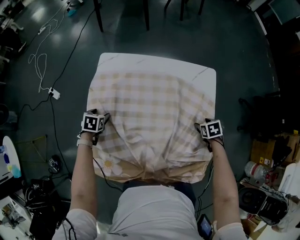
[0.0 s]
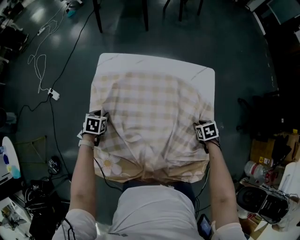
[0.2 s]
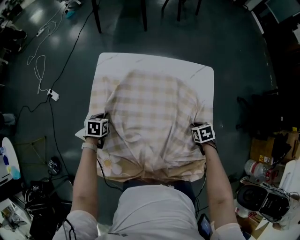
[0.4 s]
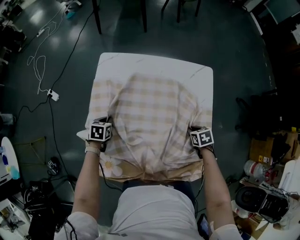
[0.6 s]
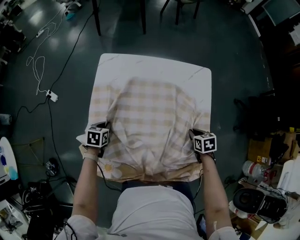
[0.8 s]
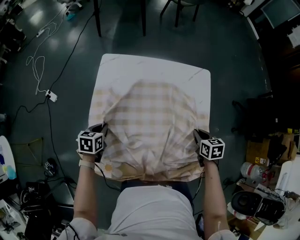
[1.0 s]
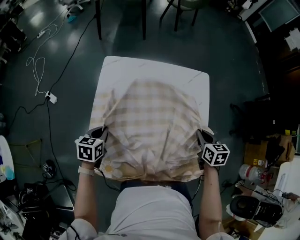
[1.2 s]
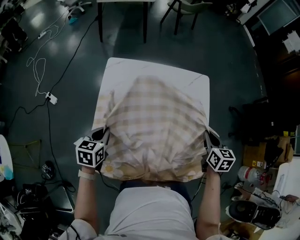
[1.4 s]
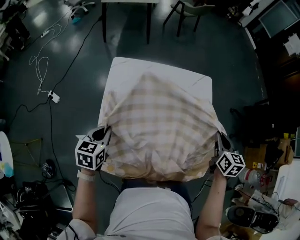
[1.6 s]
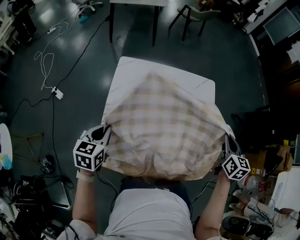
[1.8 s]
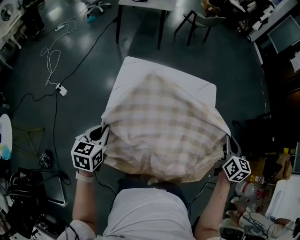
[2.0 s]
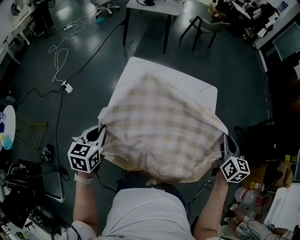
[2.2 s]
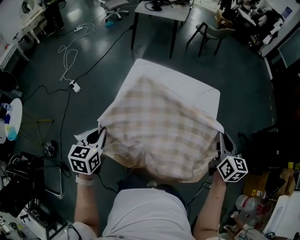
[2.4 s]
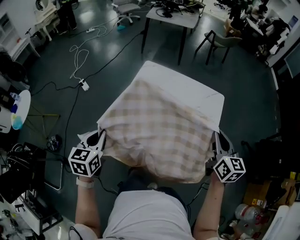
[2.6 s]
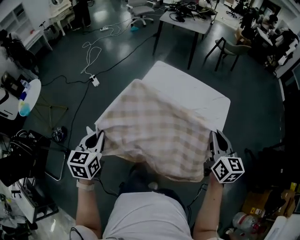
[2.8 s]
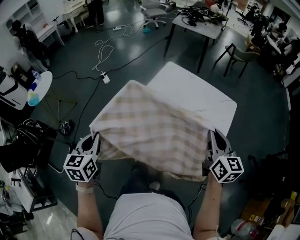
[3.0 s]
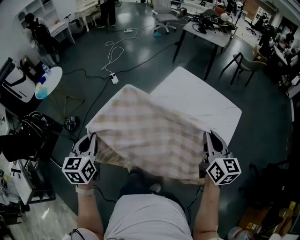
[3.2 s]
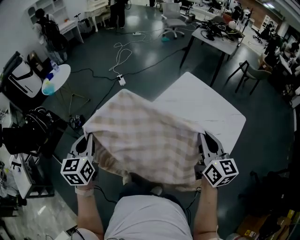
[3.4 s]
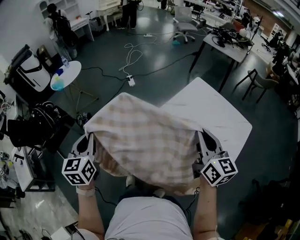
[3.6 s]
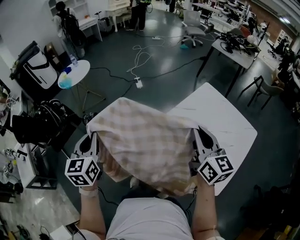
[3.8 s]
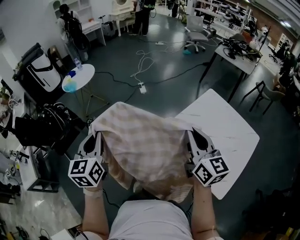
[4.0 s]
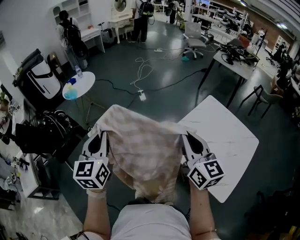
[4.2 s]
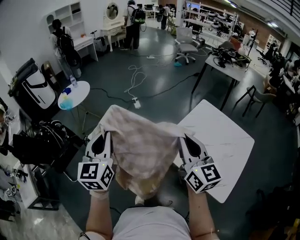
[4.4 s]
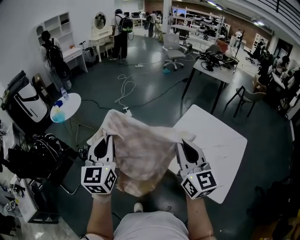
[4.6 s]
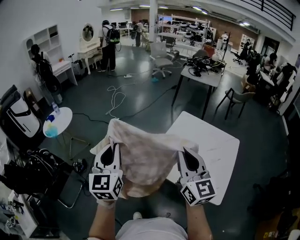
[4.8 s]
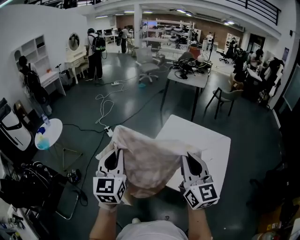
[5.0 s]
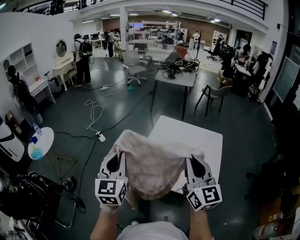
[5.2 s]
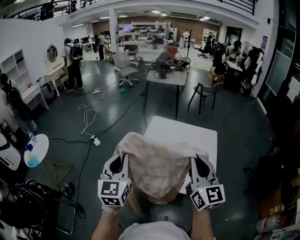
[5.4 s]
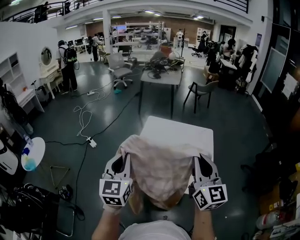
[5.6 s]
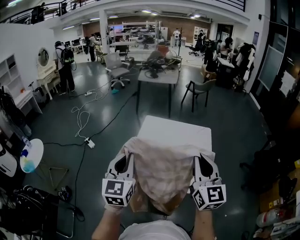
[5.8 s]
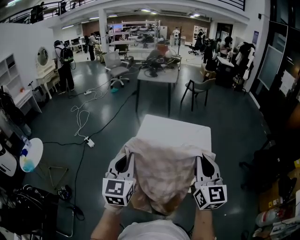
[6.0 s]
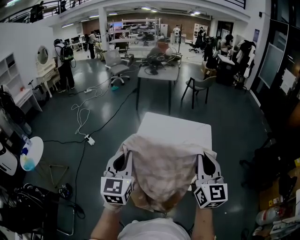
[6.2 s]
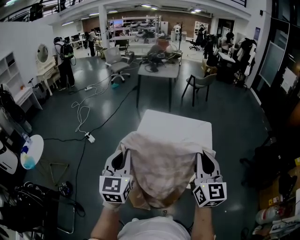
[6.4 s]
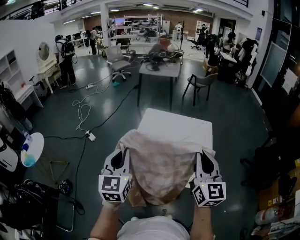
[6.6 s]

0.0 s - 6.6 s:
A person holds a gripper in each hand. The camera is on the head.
0.0 s - 1.6 s: The grippers both shift upward by some 25 cm. The right gripper points its fingers roughly 40 degrees further upward, and closes its fingers. Meanwhile the left gripper rotates about 30 degrees, and closes.
1.6 s - 3.2 s: The left gripper changes place by some 40 cm, and rotates approximately 50 degrees, while the right gripper shifts by roughly 25 cm, and rotates roughly 50 degrees.
3.2 s - 5.0 s: The left gripper goes about 15 cm upward, and turns by roughly 30 degrees, while the right gripper ends up some 25 cm from where it was, and swivels approximately 20 degrees.
5.0 s - 6.6 s: The two grippers go some 15 cm to the right. The right gripper changes its angle by about 20 degrees.

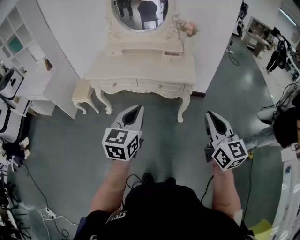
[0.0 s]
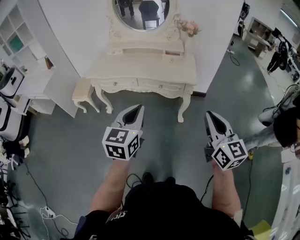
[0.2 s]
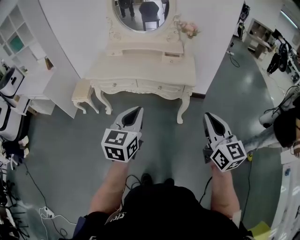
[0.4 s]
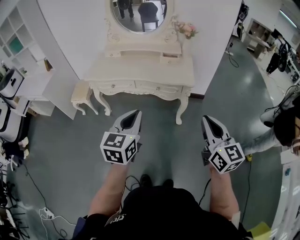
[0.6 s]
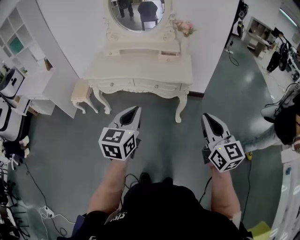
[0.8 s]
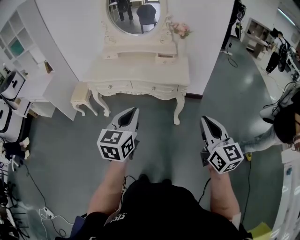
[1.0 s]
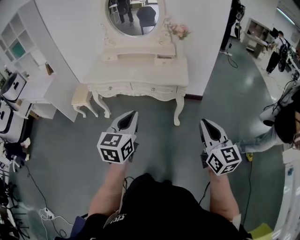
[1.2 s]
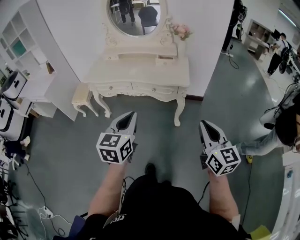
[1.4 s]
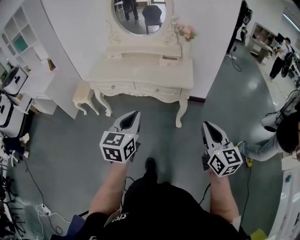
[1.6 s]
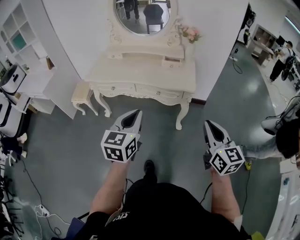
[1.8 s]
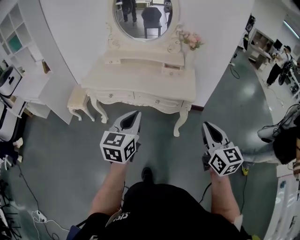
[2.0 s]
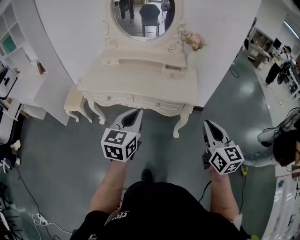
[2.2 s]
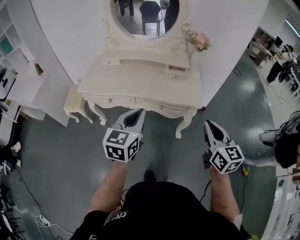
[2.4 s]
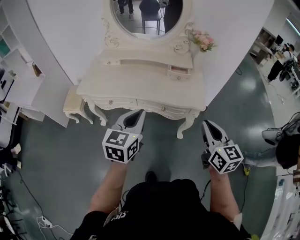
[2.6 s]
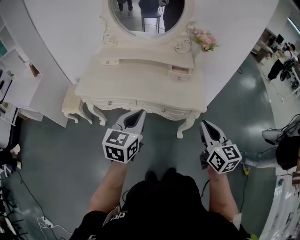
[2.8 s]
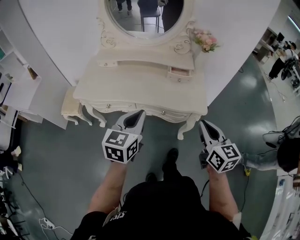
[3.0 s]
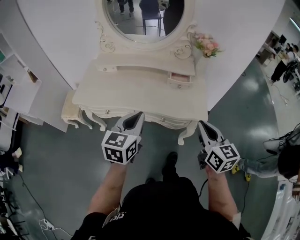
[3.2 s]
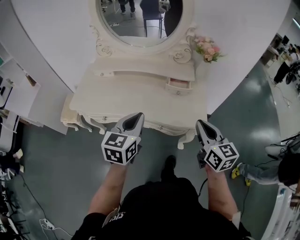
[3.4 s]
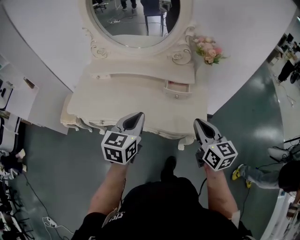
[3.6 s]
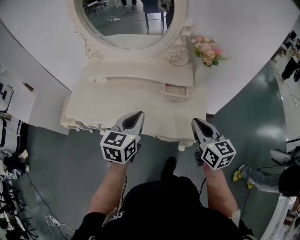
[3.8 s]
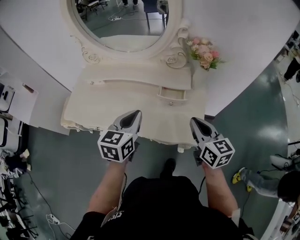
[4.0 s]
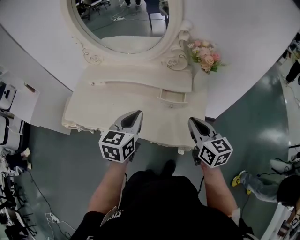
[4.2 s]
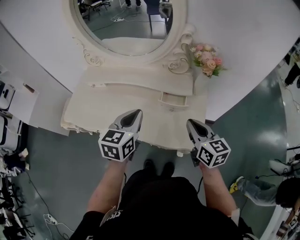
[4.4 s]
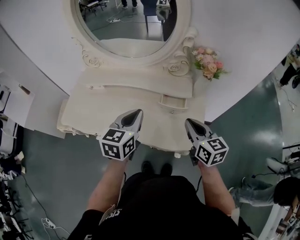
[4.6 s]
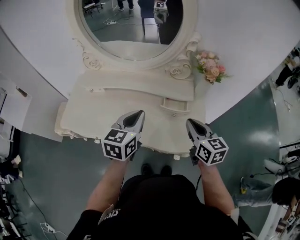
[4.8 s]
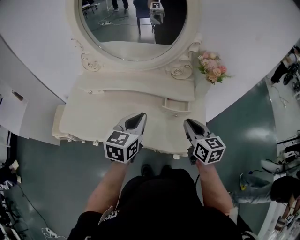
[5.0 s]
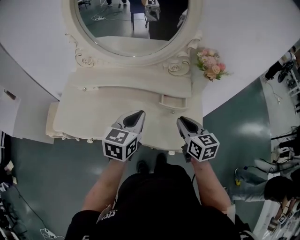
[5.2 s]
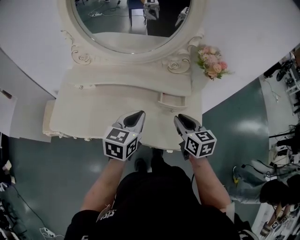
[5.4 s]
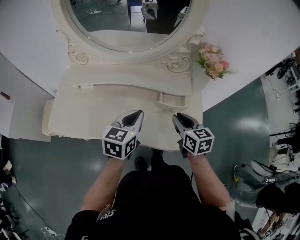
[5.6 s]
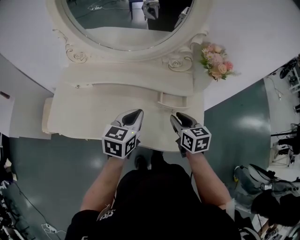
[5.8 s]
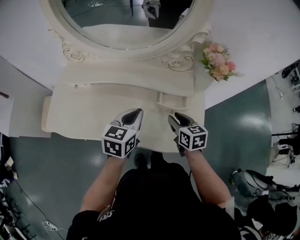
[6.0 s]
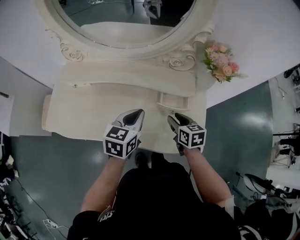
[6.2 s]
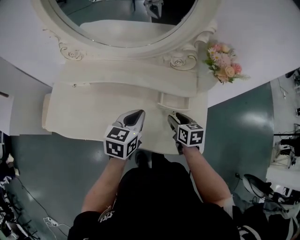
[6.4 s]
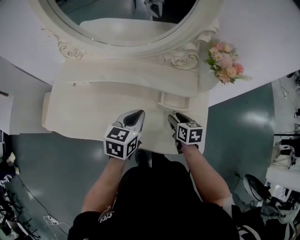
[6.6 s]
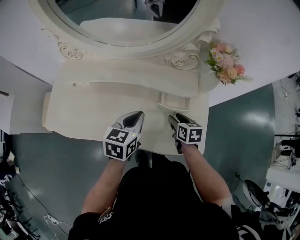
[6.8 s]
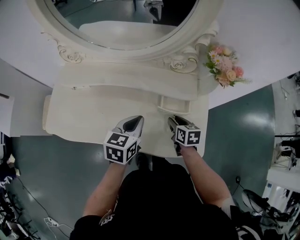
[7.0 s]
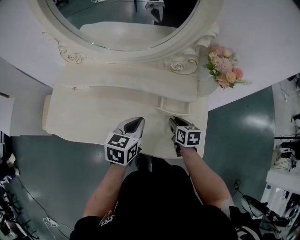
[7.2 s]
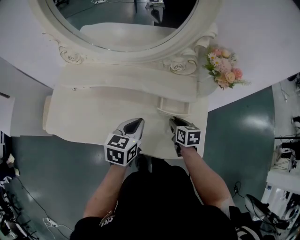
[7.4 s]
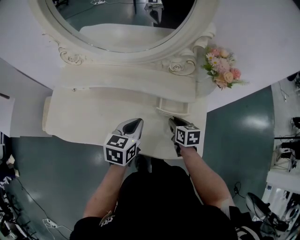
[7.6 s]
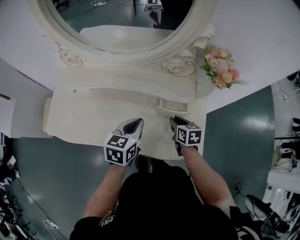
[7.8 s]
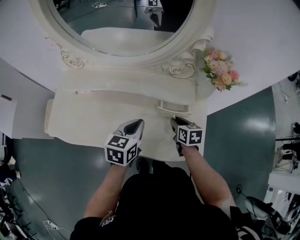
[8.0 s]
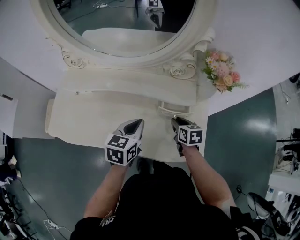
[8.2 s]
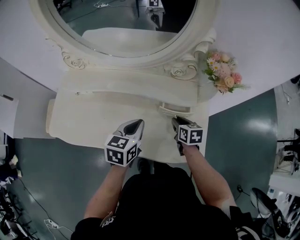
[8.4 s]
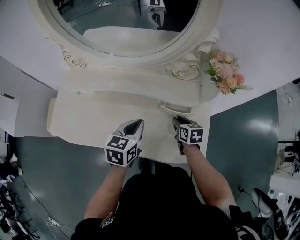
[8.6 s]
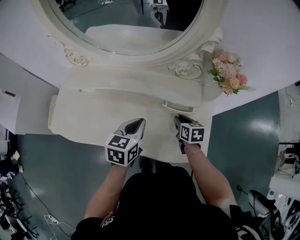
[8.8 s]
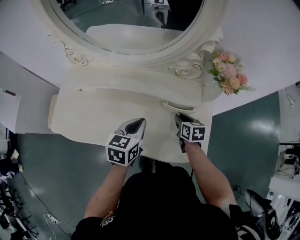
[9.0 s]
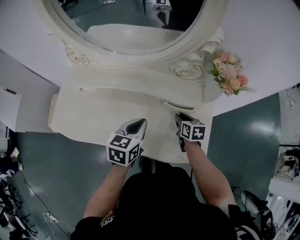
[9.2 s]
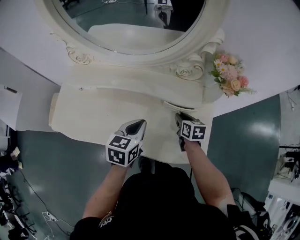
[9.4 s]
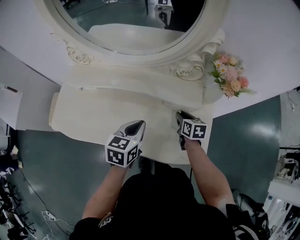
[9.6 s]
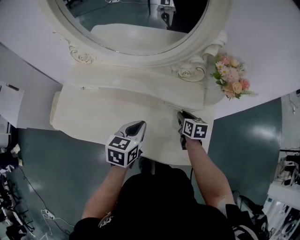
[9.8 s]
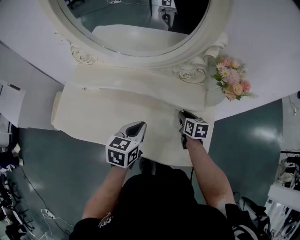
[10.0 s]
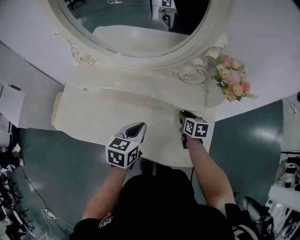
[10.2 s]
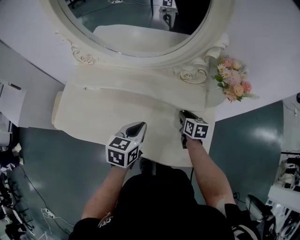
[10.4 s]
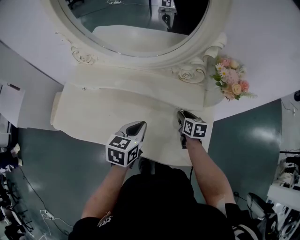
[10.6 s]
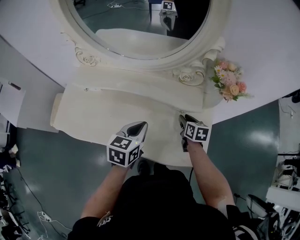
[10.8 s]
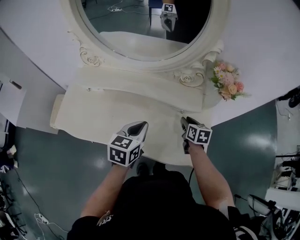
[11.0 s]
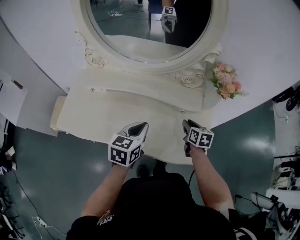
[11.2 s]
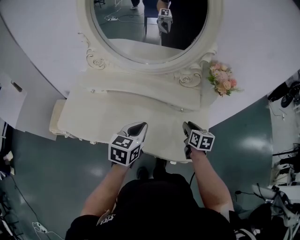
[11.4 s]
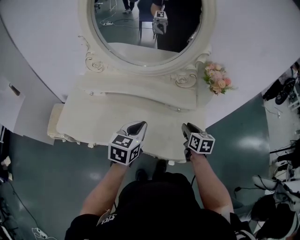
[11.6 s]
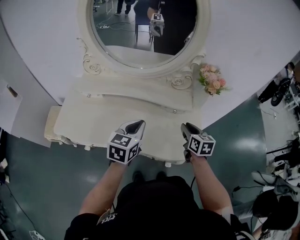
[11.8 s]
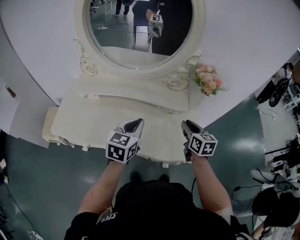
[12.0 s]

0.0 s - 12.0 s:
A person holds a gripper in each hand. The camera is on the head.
0.0 s - 1.6 s: The right gripper moves to the right, roughly 5 cm.
1.6 s - 3.0 s: Both grippers move forward, some 30 cm.
3.0 s - 4.4 s: The two grippers go approximately 25 cm forward.
4.4 s - 6.0 s: The right gripper heads downward, forward and to the left, covering roughly 15 cm, rotates approximately 20 degrees, and opens its fingers. Meanwhile the left gripper shifts approximately 10 cm downward and forward.
6.0 s - 7.6 s: The right gripper travels downward by roughly 10 cm.
7.6 s - 9.0 s: The grippers move only a little.
9.0 s - 10.4 s: The grippers stay close to where they were, moving slightly.
10.4 s - 12.0 s: The left gripper travels upward by approximately 10 cm. The right gripper is displaced upward and backward by about 20 cm.

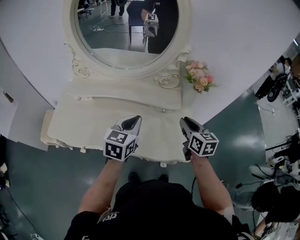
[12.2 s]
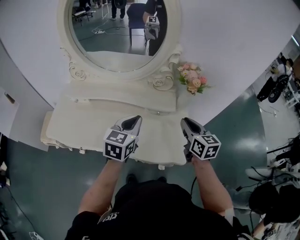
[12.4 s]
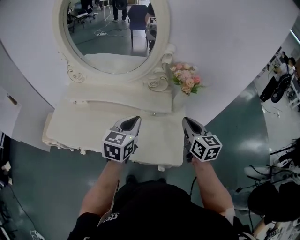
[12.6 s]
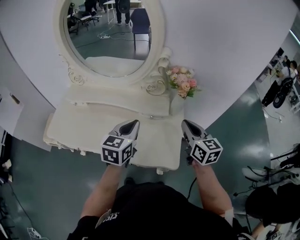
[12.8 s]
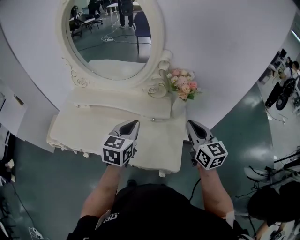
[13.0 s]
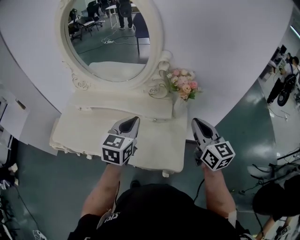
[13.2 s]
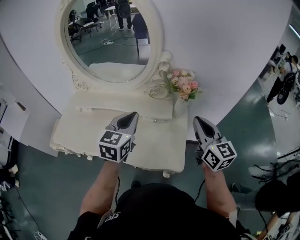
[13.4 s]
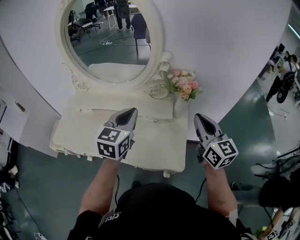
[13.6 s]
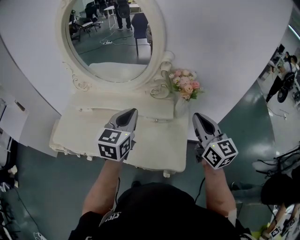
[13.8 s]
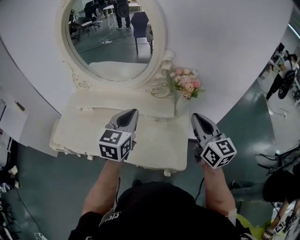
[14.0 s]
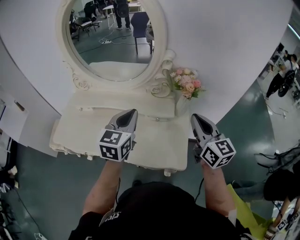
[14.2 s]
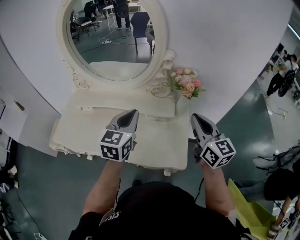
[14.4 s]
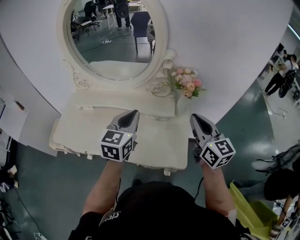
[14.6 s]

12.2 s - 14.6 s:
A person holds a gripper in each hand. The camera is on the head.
12.2 s - 13.4 s: Both grippers move upward and to the right, some 15 cm. The right gripper swivels approximately 20 degrees.
13.4 s - 14.6 s: The grippers stay close to where they were, moving slightly.

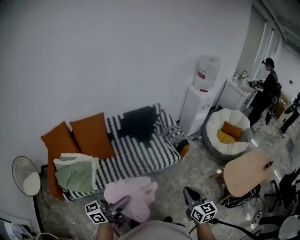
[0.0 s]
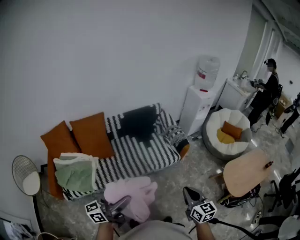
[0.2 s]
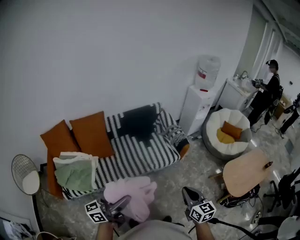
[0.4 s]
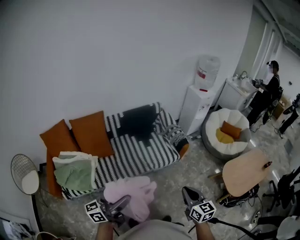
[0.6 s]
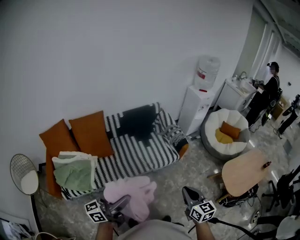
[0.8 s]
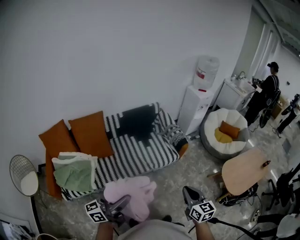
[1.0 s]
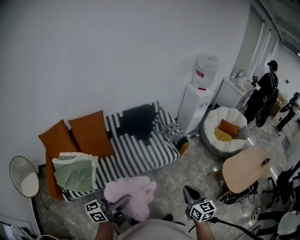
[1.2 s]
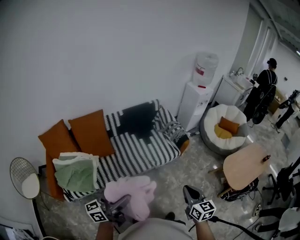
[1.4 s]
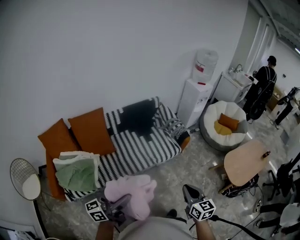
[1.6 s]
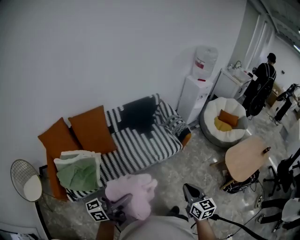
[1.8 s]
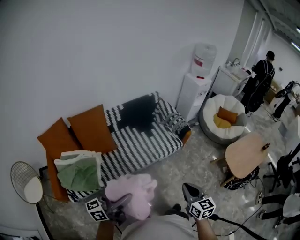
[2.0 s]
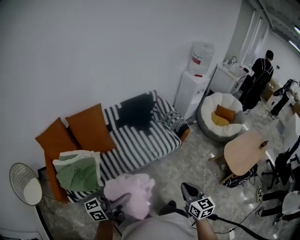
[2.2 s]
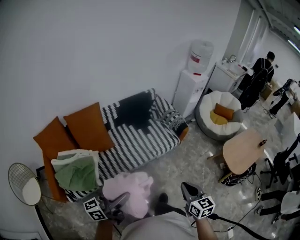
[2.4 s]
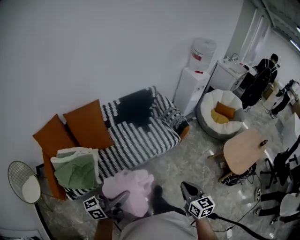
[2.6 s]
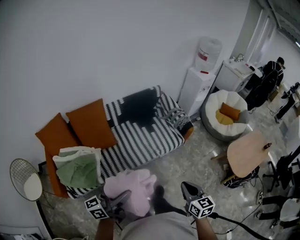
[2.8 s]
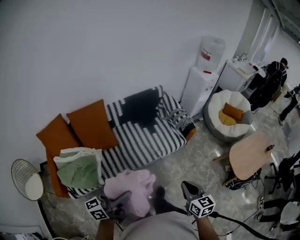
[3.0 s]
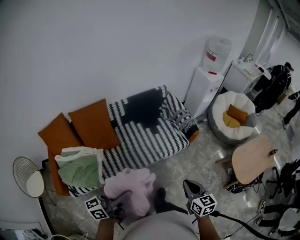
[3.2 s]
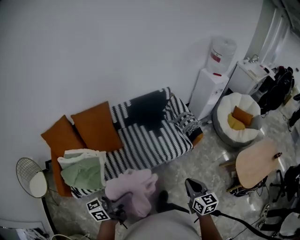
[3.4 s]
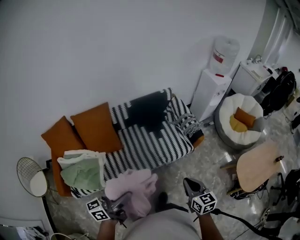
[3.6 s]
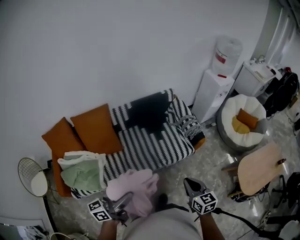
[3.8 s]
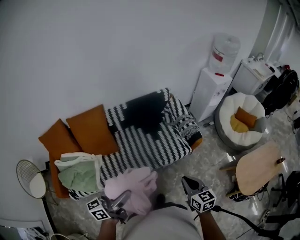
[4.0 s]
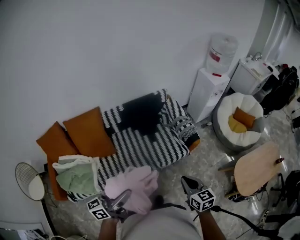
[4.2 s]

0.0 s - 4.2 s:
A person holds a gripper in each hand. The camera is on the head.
0.0 s - 1.4 s: The grippers both shift to the left by some 5 cm.
1.4 s - 2.8 s: Both grippers move to the left, some 10 cm.
2.8 s - 4.2 s: The grippers both shift forward by roughly 25 cm.
